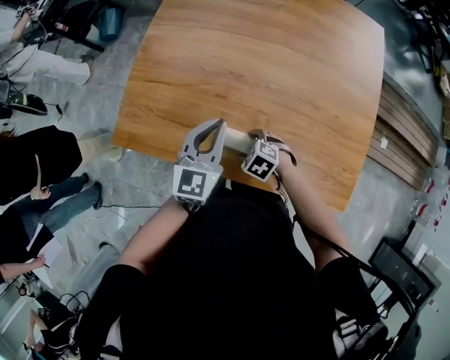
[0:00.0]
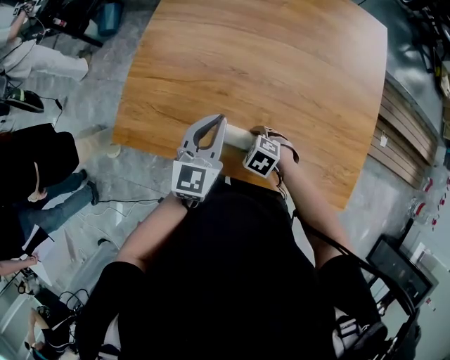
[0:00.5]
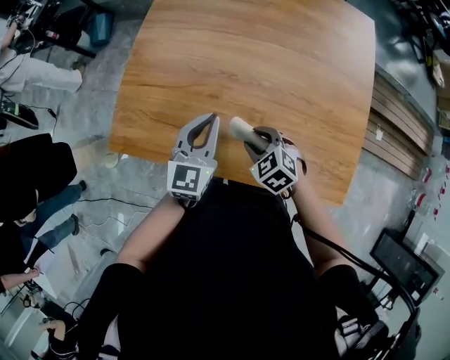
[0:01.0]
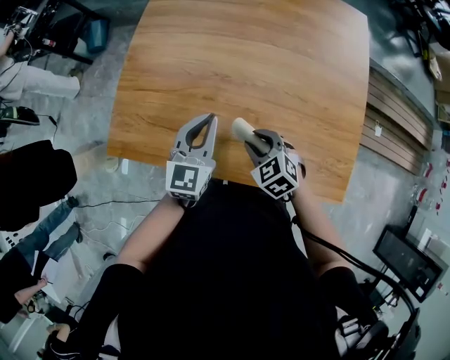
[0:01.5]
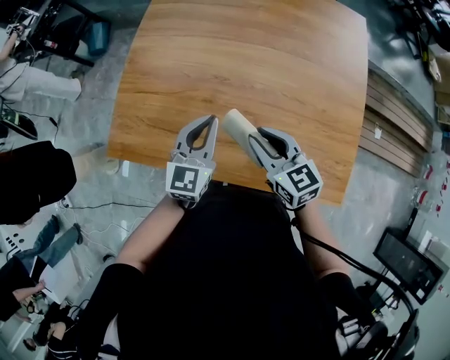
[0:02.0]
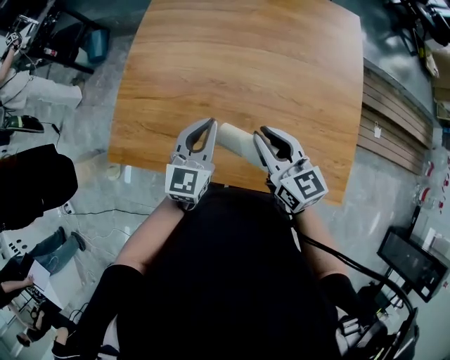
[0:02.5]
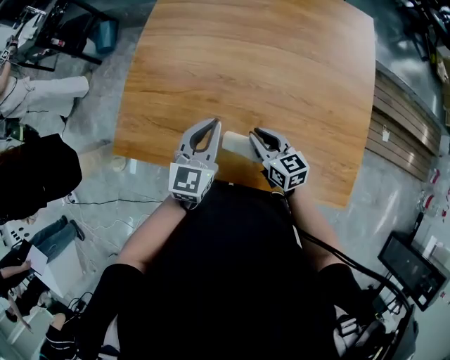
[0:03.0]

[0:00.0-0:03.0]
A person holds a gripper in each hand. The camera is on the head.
0:00.0 to 0:01.5: The right gripper travels upward and to the right by approximately 10 cm, rotates roughly 30 degrees, and closes.
0:01.5 to 0:03.0: The right gripper reaches some 15 cm upward, then returns, and changes its angle by roughly 40 degrees.

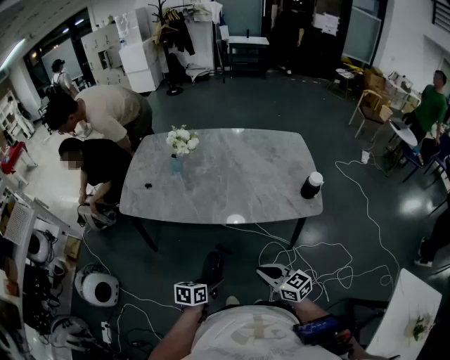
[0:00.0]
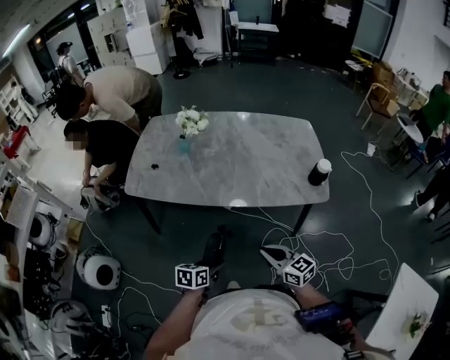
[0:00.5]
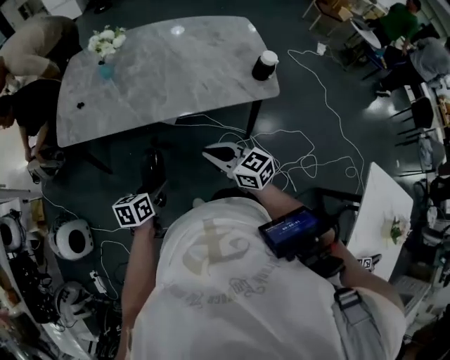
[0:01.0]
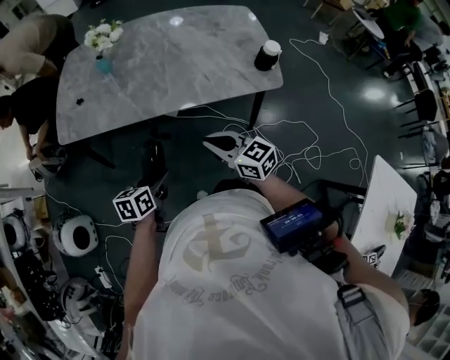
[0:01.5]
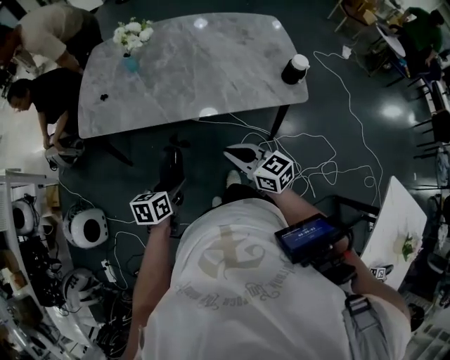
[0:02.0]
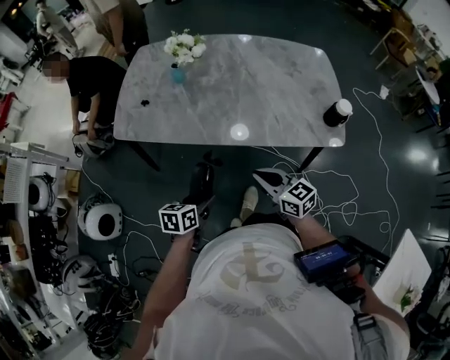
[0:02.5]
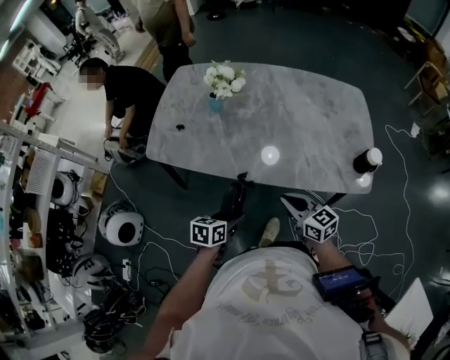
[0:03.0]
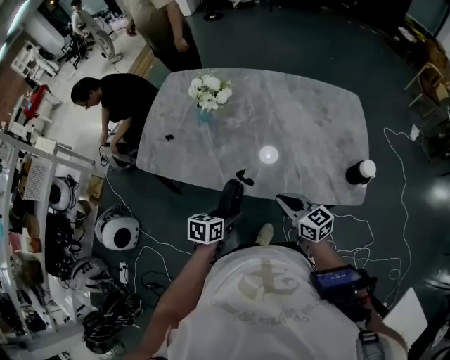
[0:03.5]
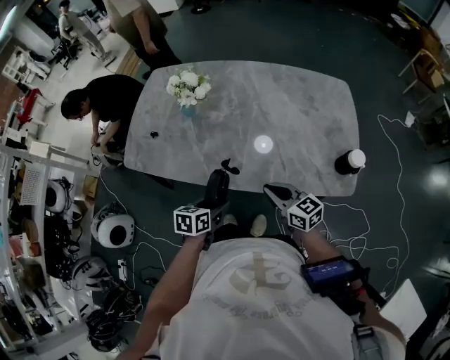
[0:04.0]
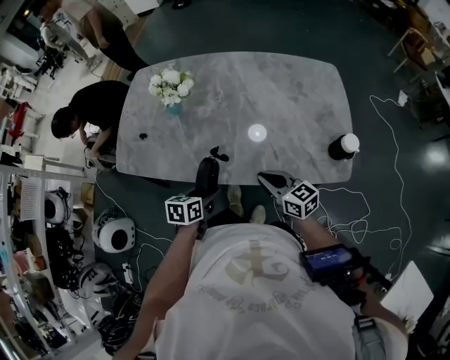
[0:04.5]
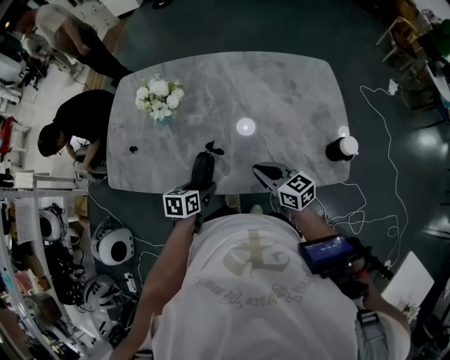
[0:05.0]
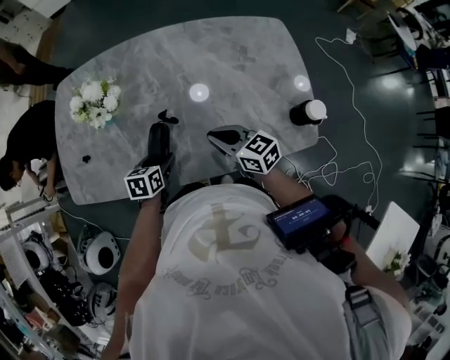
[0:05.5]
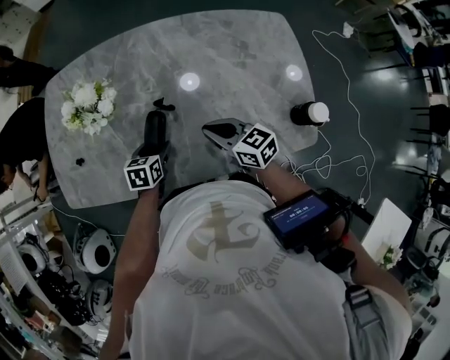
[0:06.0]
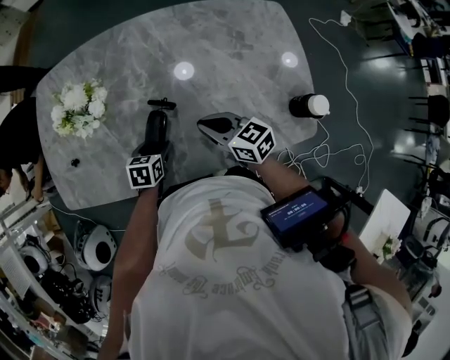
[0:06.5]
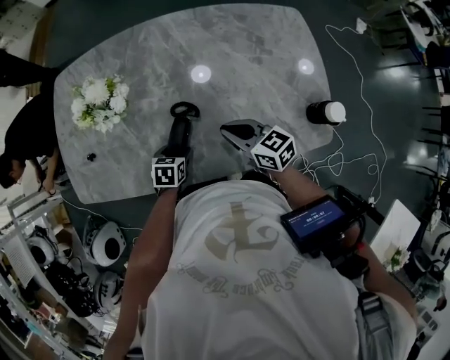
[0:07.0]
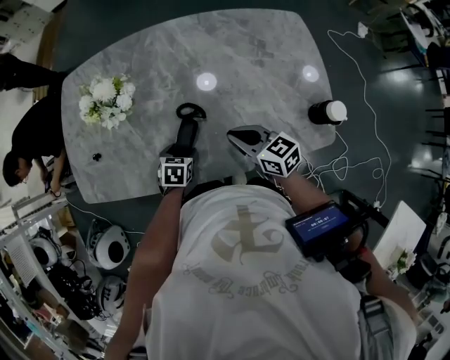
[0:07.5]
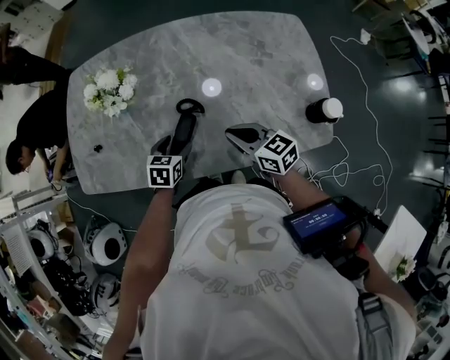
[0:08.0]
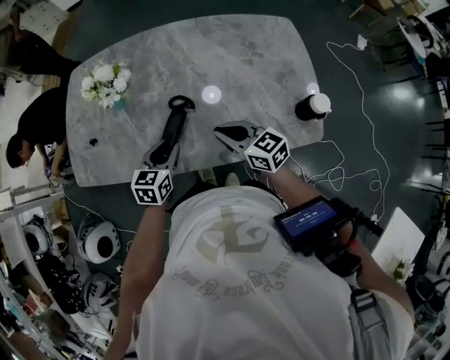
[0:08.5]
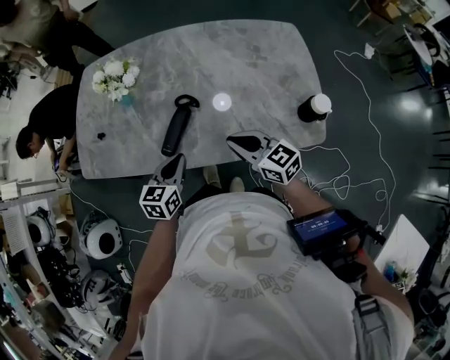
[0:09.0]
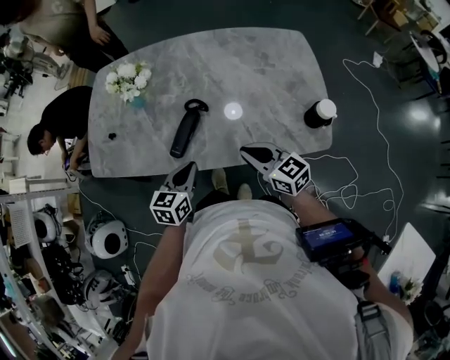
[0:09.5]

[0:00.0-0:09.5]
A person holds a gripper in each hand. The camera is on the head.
0:00.0 to 0:02.0: The left gripper ends up some 5 cm from where it was, while the right gripper goes roughly 5 cm forward.
0:02.0 to 0:04.0: Both grippers travel together forward, about 20 cm.
0:04.0 to 0:05.5: The grippers both shift forward by approximately 15 cm.
0:05.5 to 0:07.5: The grippers make only small movements.
0:07.5 to 0:09.5: The right gripper heads backward, covering about 10 cm, while the left gripper moves upward and backward, about 20 cm, angles its fingers upward, by approximately 30 degrees, and closes its fingers.

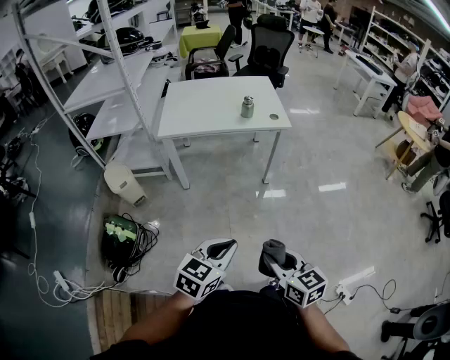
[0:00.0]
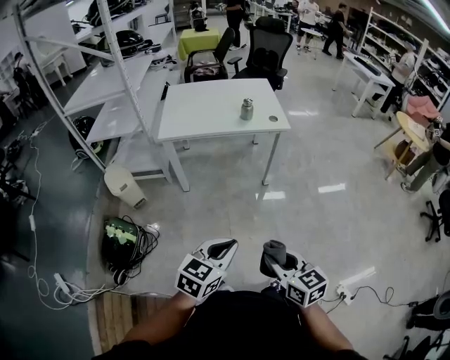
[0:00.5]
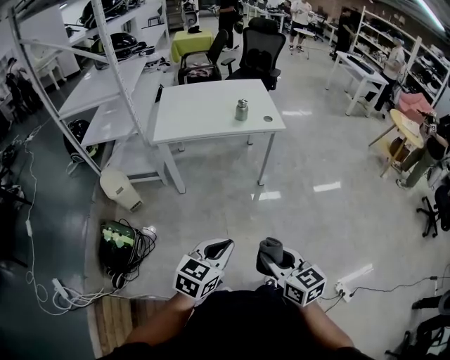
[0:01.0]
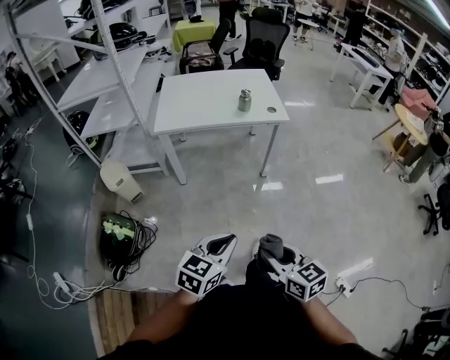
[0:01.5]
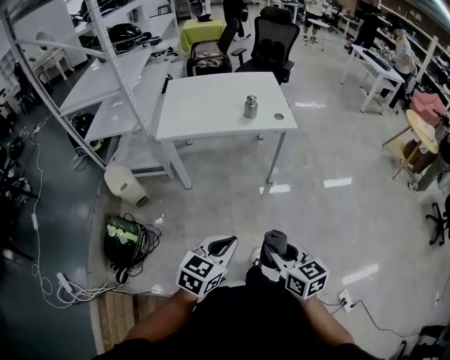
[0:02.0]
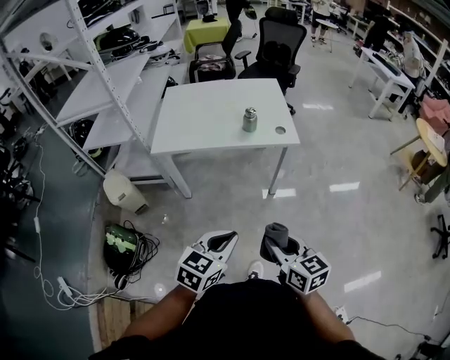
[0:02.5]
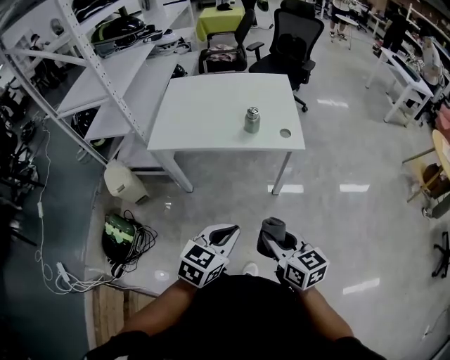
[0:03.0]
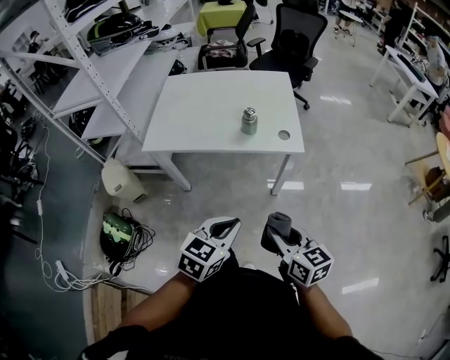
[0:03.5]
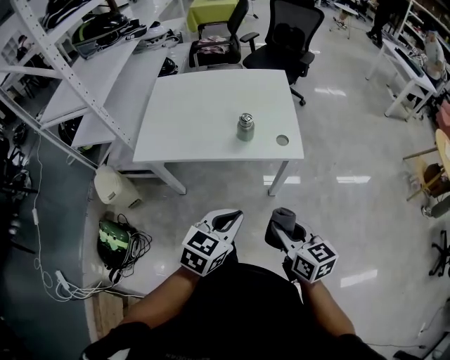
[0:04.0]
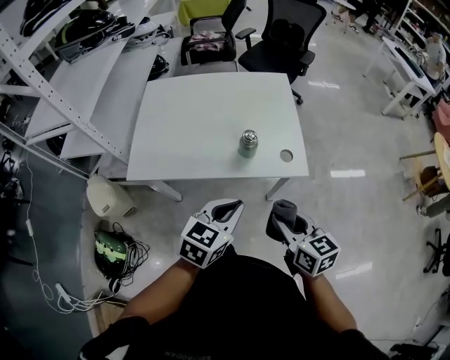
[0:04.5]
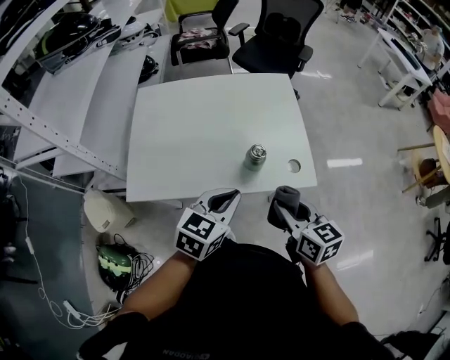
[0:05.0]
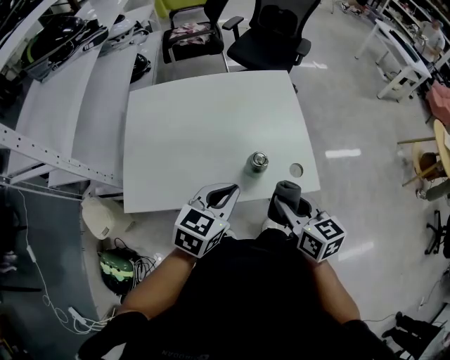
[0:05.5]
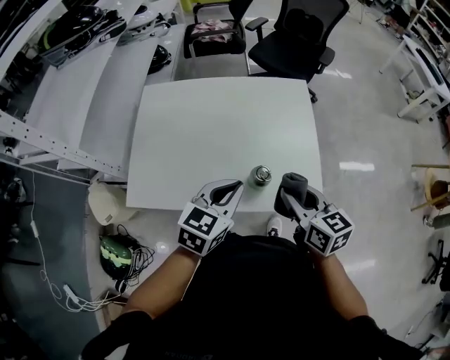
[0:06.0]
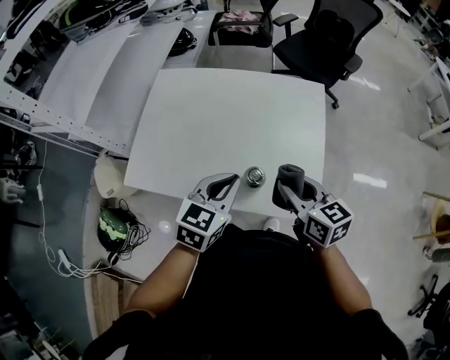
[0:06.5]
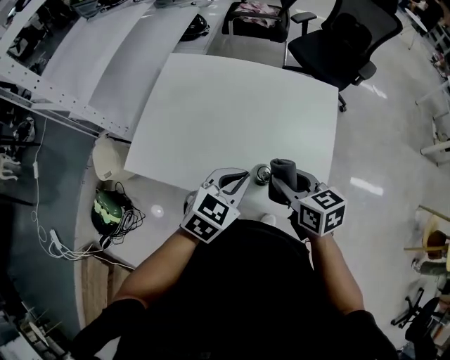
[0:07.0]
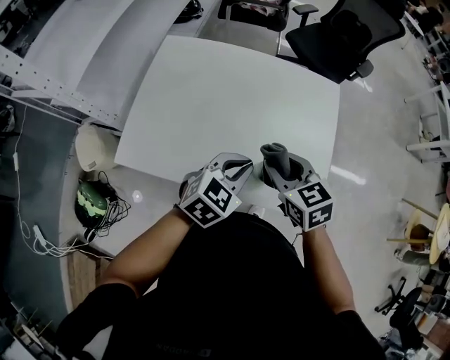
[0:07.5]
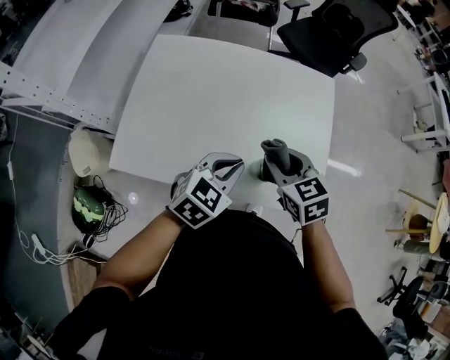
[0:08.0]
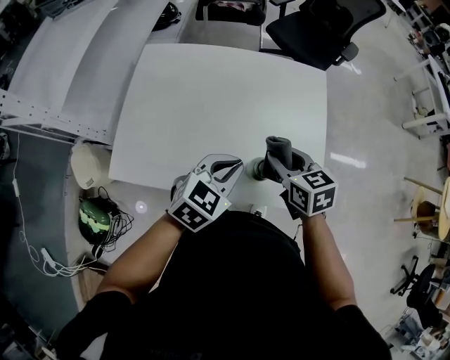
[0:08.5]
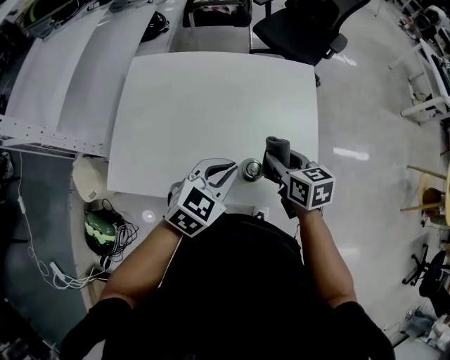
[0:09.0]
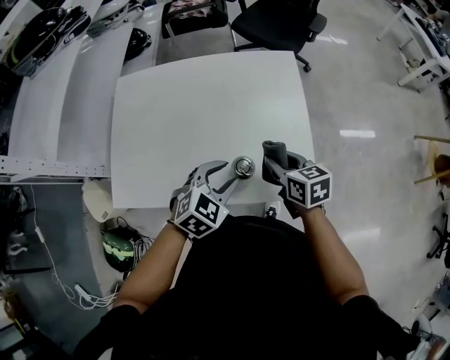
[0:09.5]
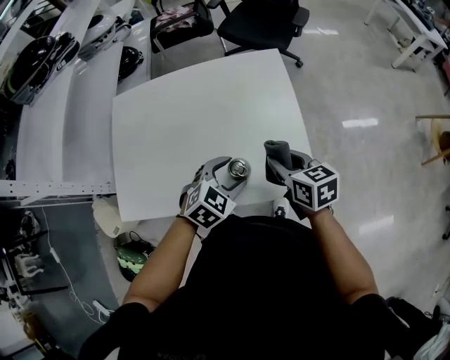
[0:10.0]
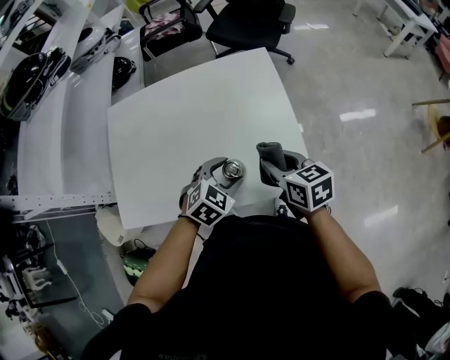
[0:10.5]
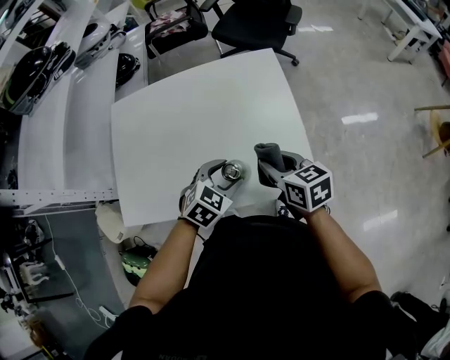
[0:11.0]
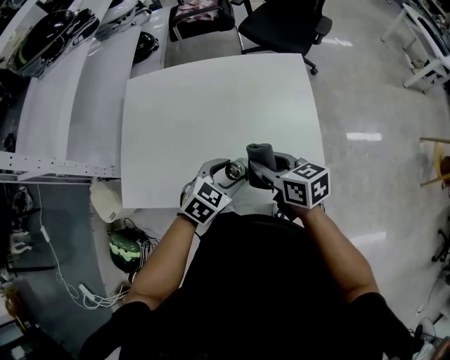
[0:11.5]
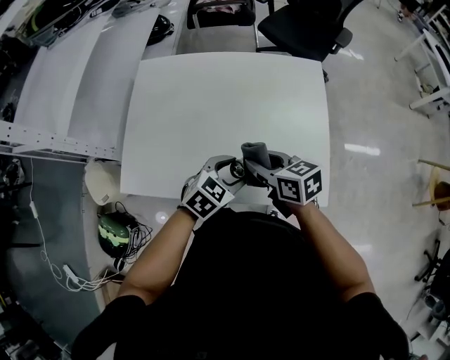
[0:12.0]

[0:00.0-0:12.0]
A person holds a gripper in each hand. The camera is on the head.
0:00.0 to 0:02.0: The grippers both shift forward by approximately 10 cm.
0:02.0 to 0:04.0: The two grippers go some 35 cm forward.
0:04.0 to 0:06.0: Both grippers move forward, approximately 35 cm.
0:06.0 to 0:08.0: The right gripper travels forward, to the left and downward by about 15 cm, and rotates approximately 30 degrees. The left gripper heads downward, covering some 5 cm.
0:08.0 to 0:10.0: The right gripper travels to the right by roughly 15 cm, and changes its angle by about 30 degrees. Meanwhile the left gripper is displaced to the right and downward by roughly 10 cm, swivels some 20 degrees, and opens its fingers.
0:10.0 to 0:12.0: The left gripper is displaced to the left by approximately 5 cm. The right gripper is displaced to the left by roughly 15 cm, and turns by roughly 20 degrees.

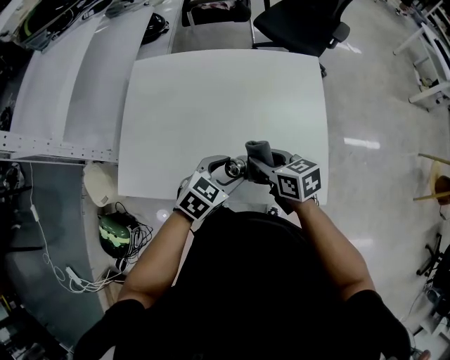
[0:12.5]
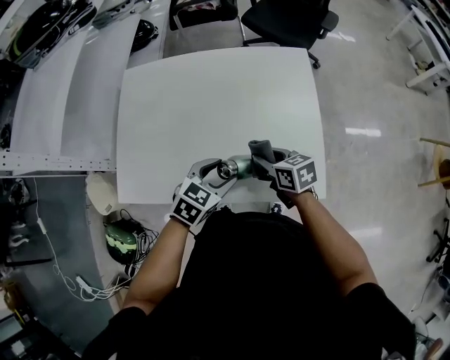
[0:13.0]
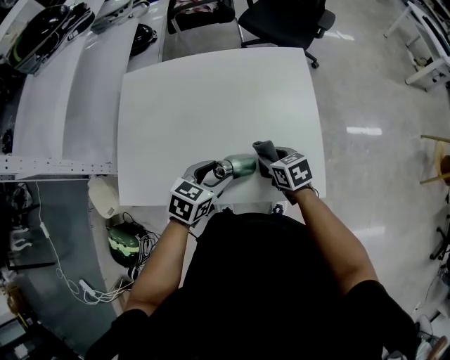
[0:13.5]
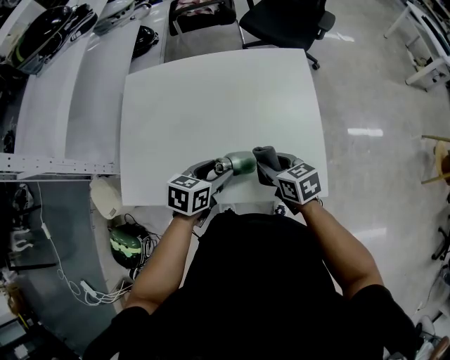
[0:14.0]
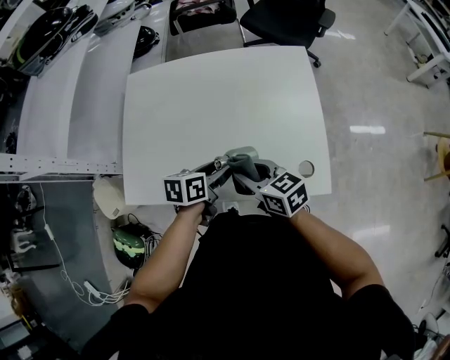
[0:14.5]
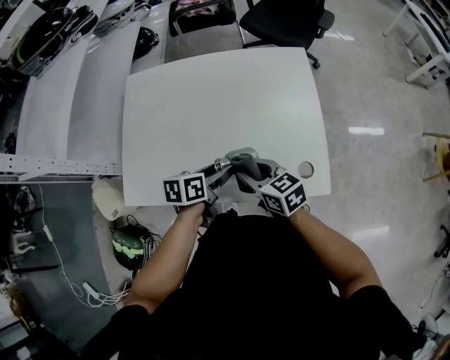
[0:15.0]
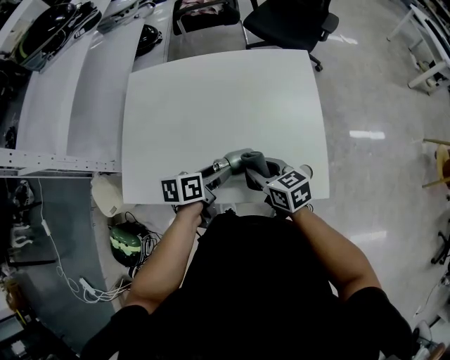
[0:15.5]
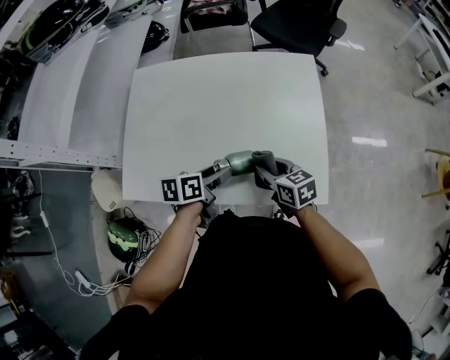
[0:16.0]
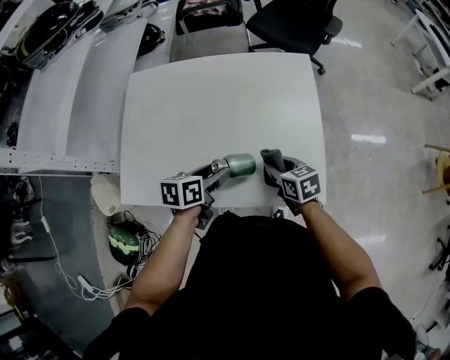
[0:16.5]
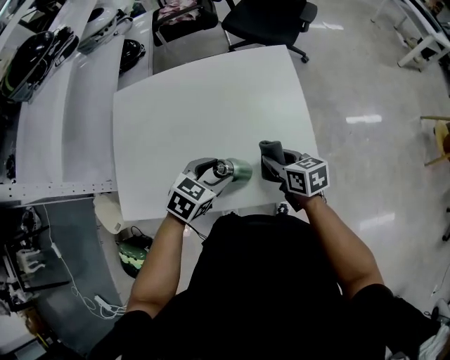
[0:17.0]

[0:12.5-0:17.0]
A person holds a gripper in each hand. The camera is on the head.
0:12.5 to 0:14.5: The left gripper rotates around the line of its fingers by roughly 40 degrees, counterclockwise from behind.
0:14.5 to 0:17.0: The right gripper moves to the right and forward, approximately 15 cm, and changes its angle by some 20 degrees. The left gripper heads to the right, covering about 5 cm, and twists approximately 50 degrees clockwise, seen from behind.
